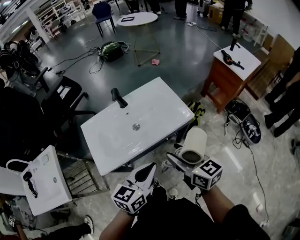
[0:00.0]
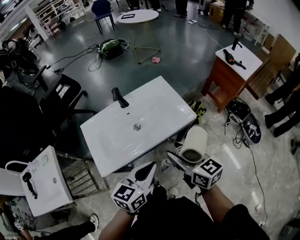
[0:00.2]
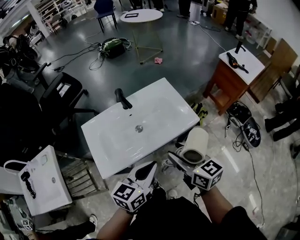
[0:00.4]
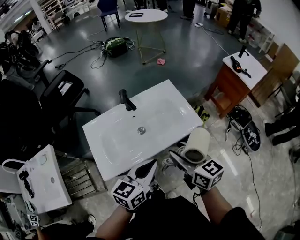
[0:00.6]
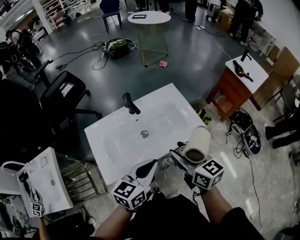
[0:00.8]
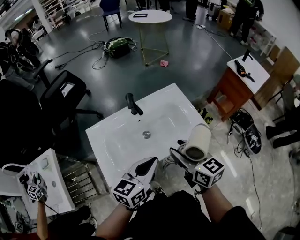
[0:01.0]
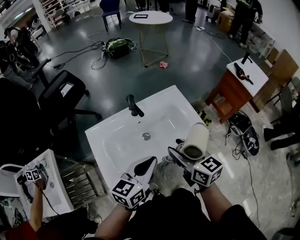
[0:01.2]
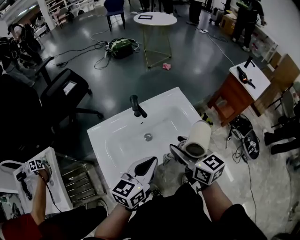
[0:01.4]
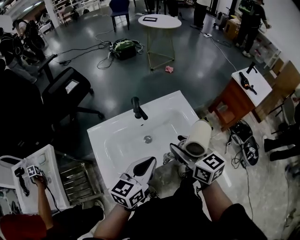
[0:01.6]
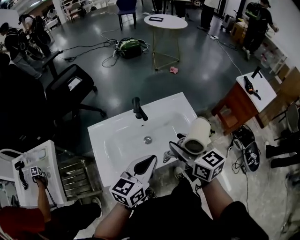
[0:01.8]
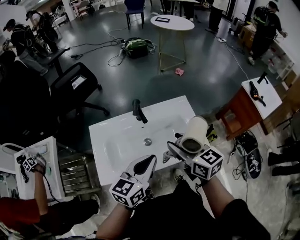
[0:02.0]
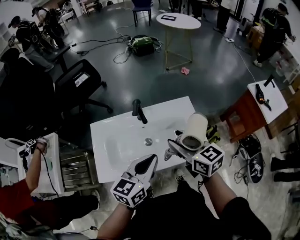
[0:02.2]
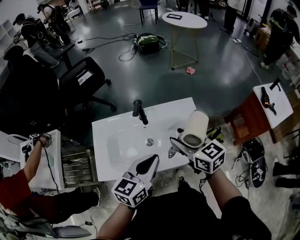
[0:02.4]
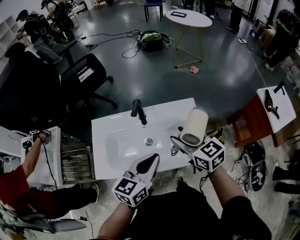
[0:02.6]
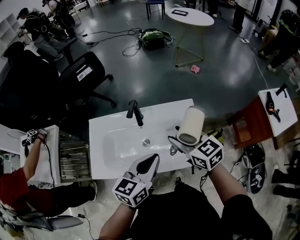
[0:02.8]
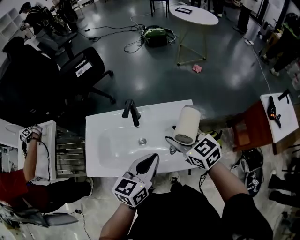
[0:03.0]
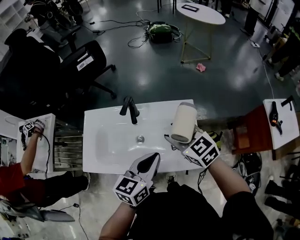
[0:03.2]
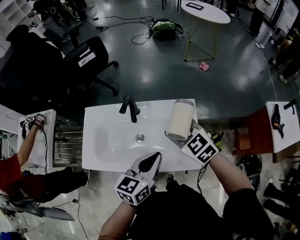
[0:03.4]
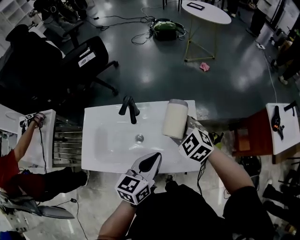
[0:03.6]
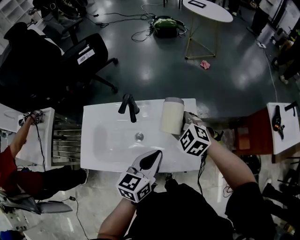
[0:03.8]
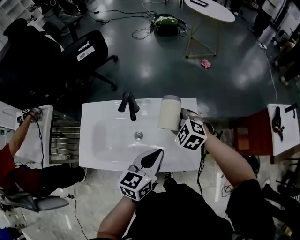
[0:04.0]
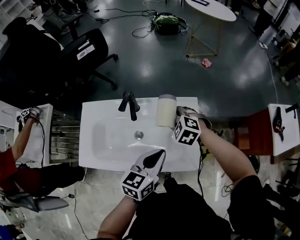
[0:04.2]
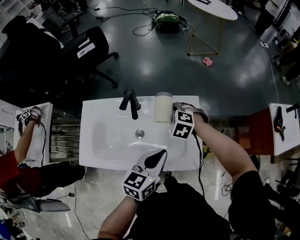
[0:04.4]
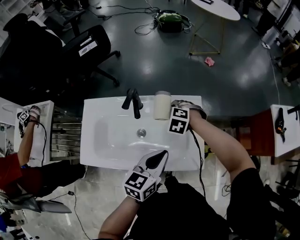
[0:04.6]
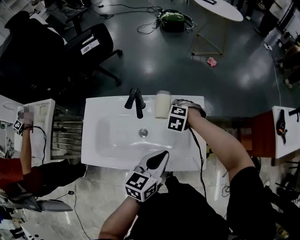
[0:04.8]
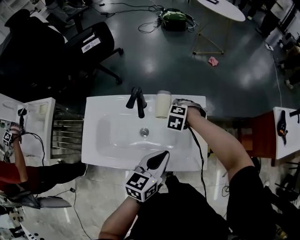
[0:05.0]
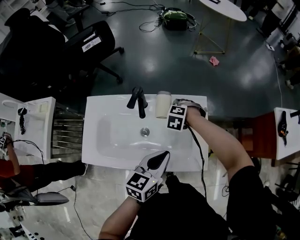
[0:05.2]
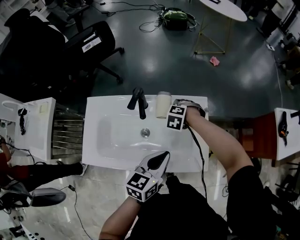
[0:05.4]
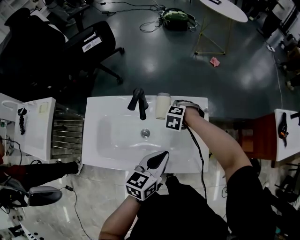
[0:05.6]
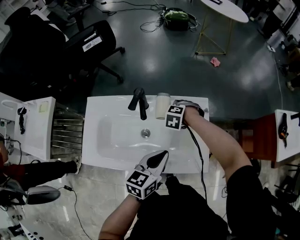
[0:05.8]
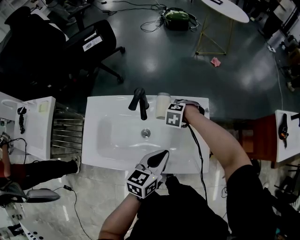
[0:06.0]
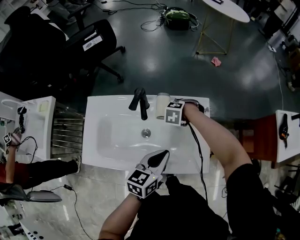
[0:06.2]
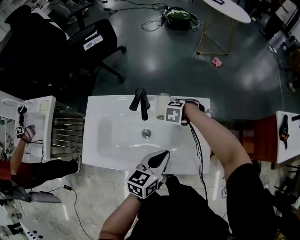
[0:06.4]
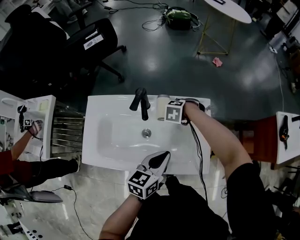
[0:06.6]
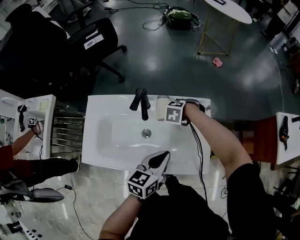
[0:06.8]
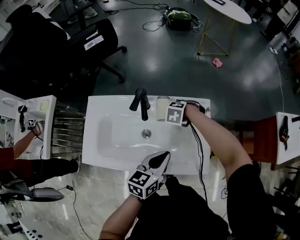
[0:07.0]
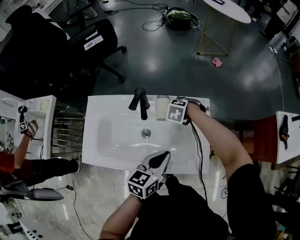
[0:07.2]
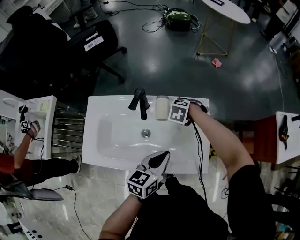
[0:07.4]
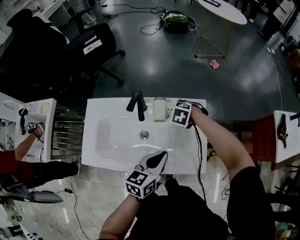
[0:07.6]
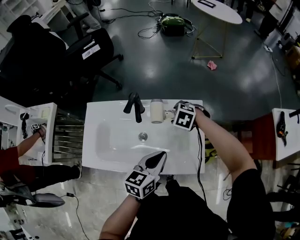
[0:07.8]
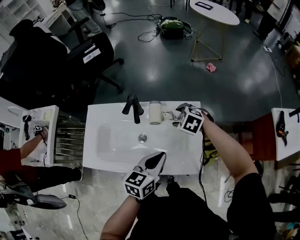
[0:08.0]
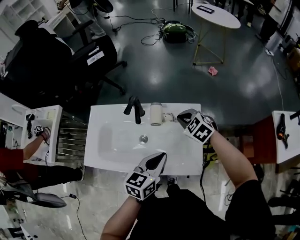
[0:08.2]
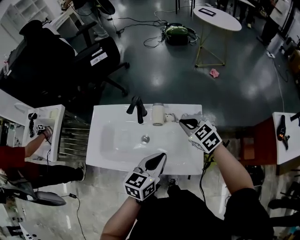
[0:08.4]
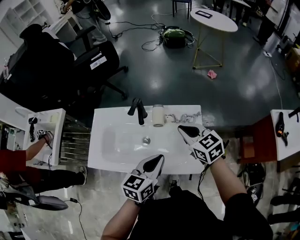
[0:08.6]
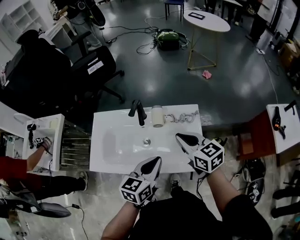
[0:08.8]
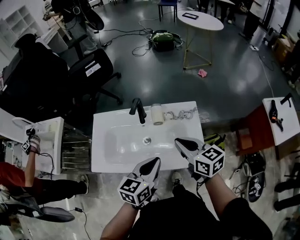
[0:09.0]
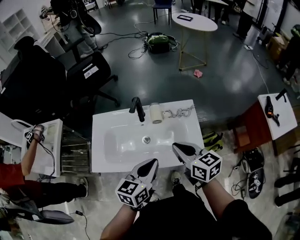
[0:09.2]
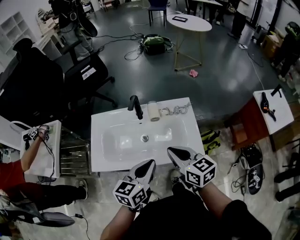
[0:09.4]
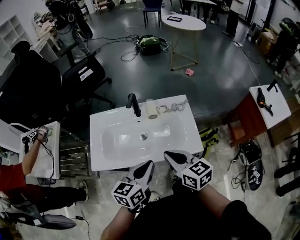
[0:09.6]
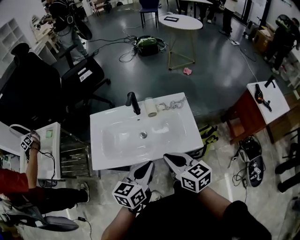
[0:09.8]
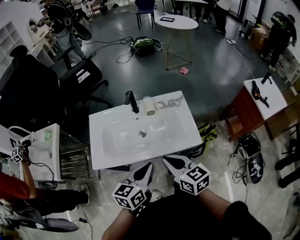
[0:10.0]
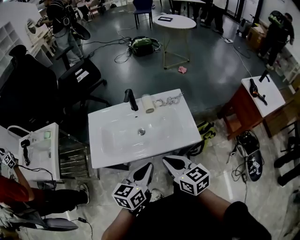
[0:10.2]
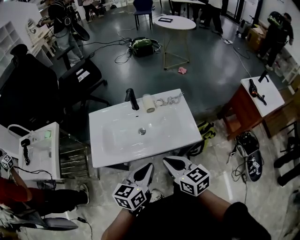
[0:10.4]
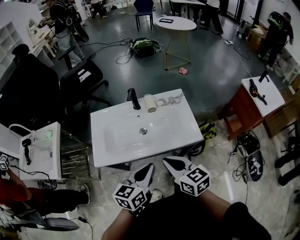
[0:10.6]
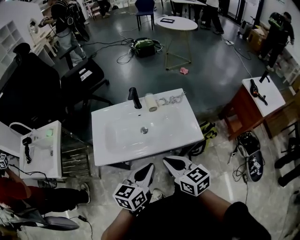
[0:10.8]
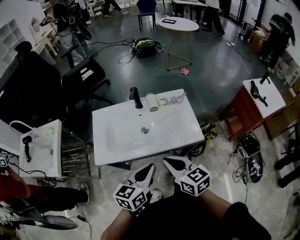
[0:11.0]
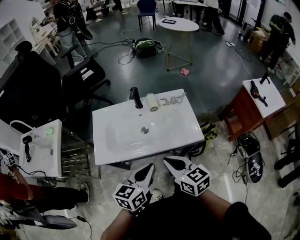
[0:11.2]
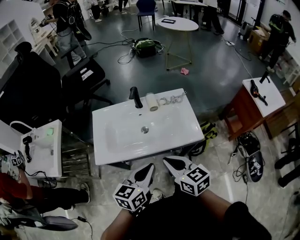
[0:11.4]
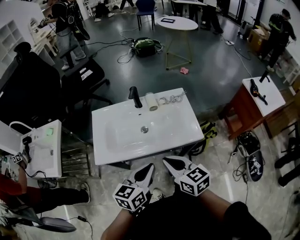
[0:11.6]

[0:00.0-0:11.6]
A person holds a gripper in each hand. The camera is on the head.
0:00.0 to 0:01.4: The grippers both shift forward and to the left by approximately 15 cm.
0:01.4 to 0:02.8: The left gripper is displaced to the right and forward by about 15 cm, and changes its angle by approximately 20 degrees. Meanwhile the right gripper heads forward and to the right, covering about 15 cm, and swivels approximately 30 degrees.
0:02.8 to 0:04.4: The left gripper is displaced downward and to the right by approximately 10 cm. The right gripper is displaced downward and forward by approximately 20 cm, and points its fingers approximately 40 degrees further downward.
0:04.4 to 0:05.8: The right gripper moves downward, approximately 10 cm.
0:05.8 to 0:07.2: The grippers make only small movements.
0:07.2 to 0:08.8: The left gripper shifts about 5 cm upward. The right gripper travels upward by approximately 25 cm, tilts its fingers some 60 degrees upward, and closes its fingers.
0:08.8 to 0:10.2: The grippers both shift backward and to the left by approximately 20 cm.
0:10.2 to 0:11.6: The grippers move only a little.

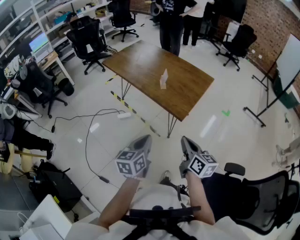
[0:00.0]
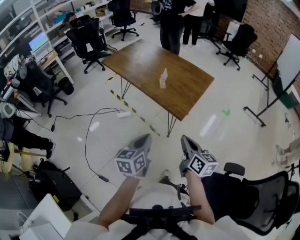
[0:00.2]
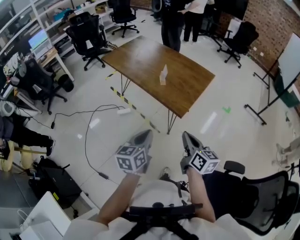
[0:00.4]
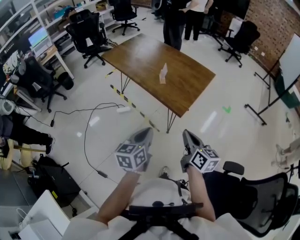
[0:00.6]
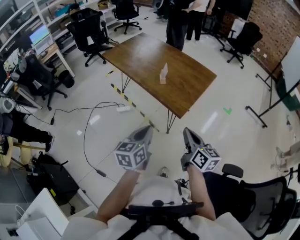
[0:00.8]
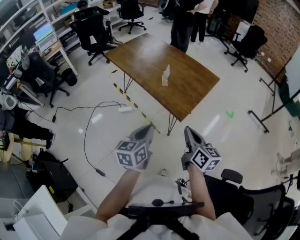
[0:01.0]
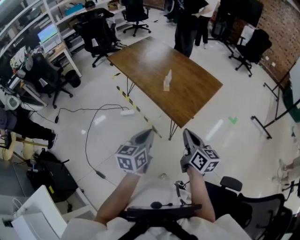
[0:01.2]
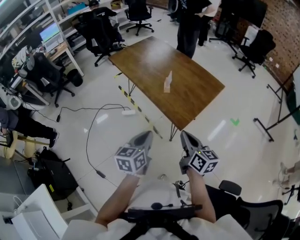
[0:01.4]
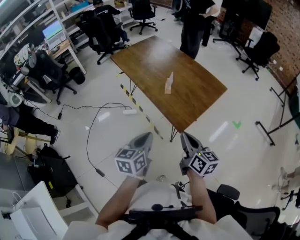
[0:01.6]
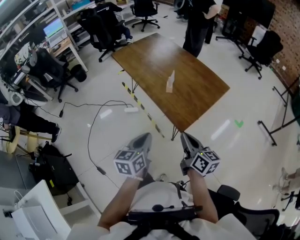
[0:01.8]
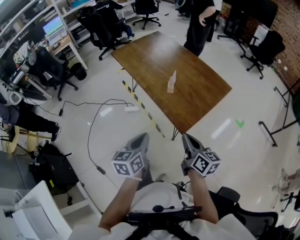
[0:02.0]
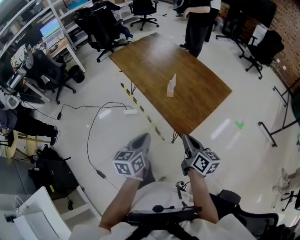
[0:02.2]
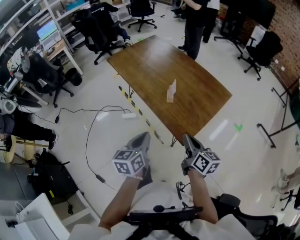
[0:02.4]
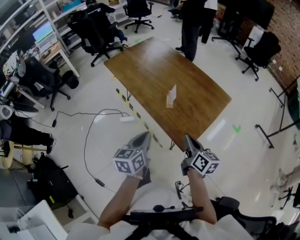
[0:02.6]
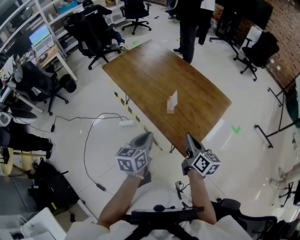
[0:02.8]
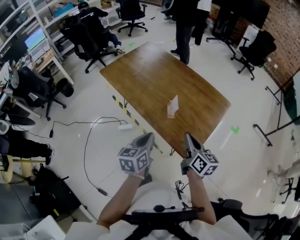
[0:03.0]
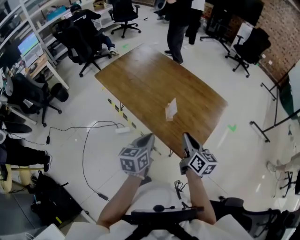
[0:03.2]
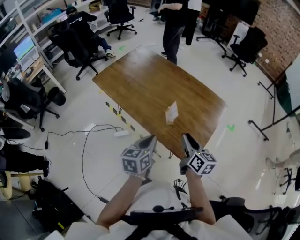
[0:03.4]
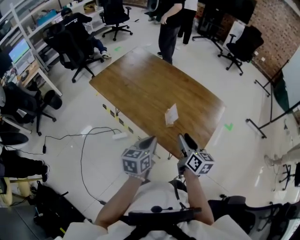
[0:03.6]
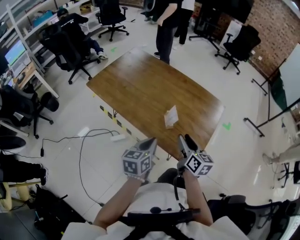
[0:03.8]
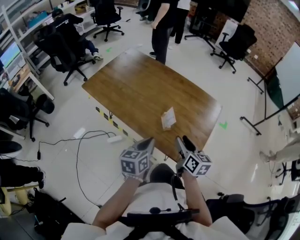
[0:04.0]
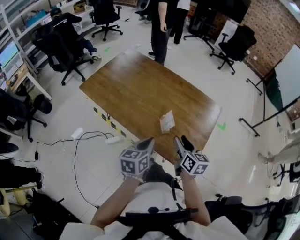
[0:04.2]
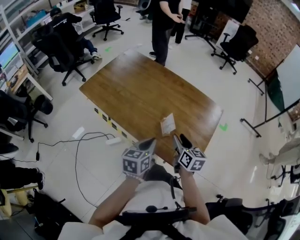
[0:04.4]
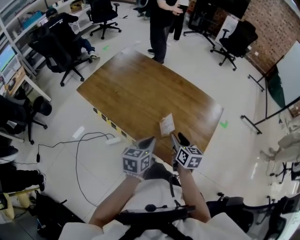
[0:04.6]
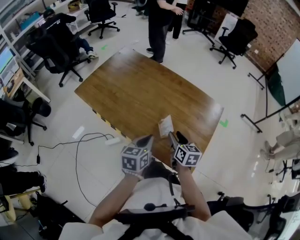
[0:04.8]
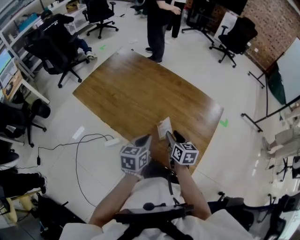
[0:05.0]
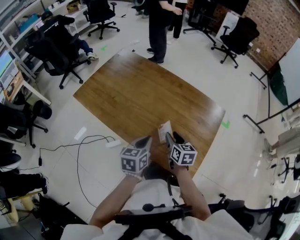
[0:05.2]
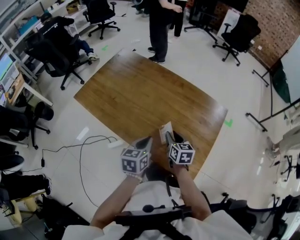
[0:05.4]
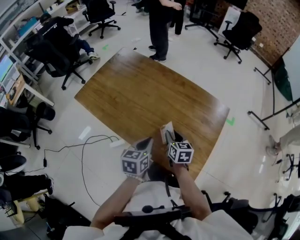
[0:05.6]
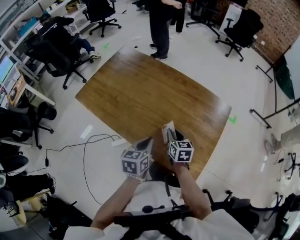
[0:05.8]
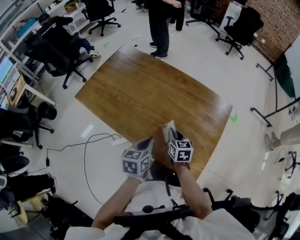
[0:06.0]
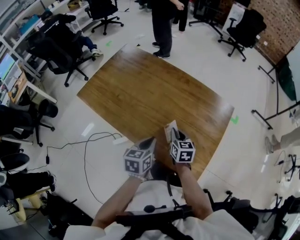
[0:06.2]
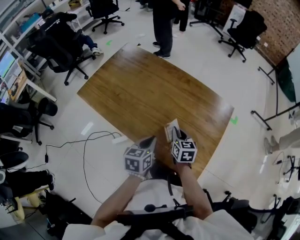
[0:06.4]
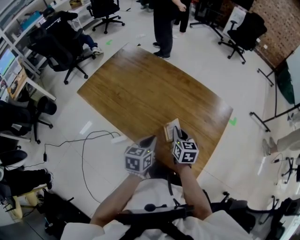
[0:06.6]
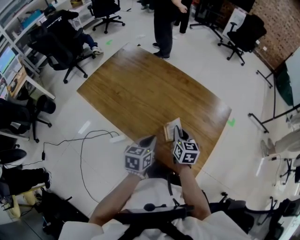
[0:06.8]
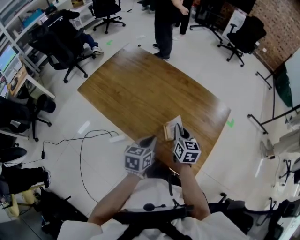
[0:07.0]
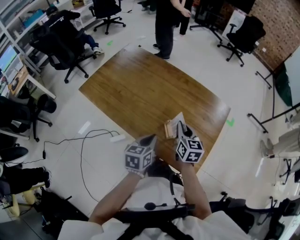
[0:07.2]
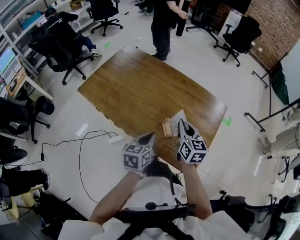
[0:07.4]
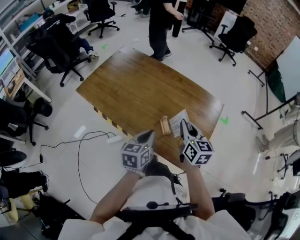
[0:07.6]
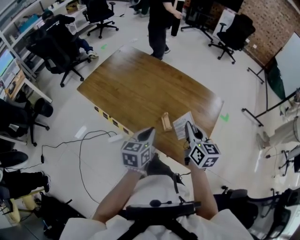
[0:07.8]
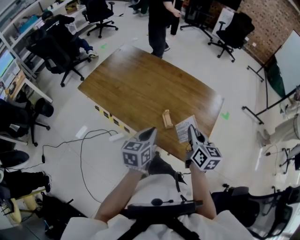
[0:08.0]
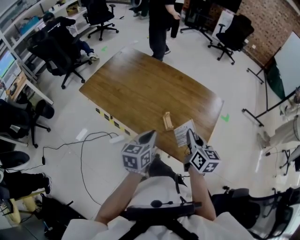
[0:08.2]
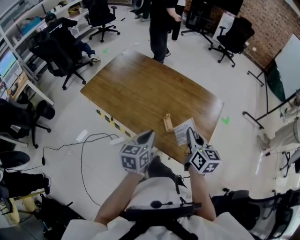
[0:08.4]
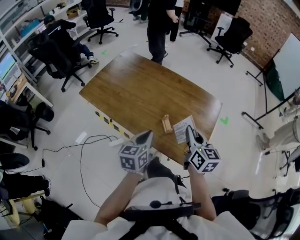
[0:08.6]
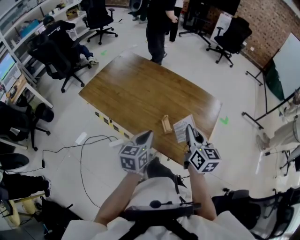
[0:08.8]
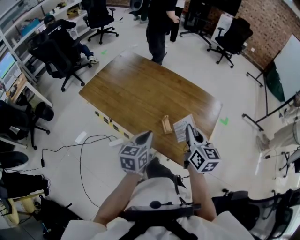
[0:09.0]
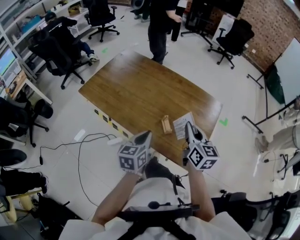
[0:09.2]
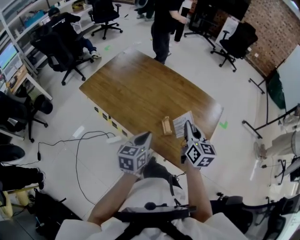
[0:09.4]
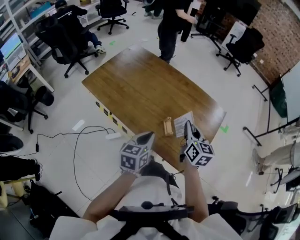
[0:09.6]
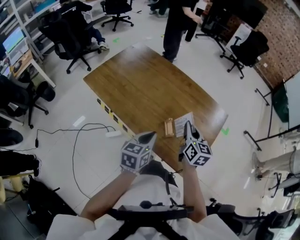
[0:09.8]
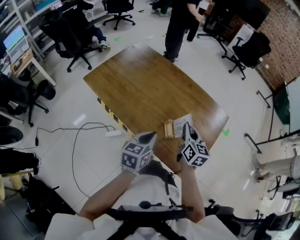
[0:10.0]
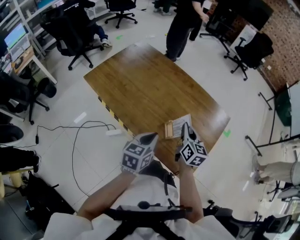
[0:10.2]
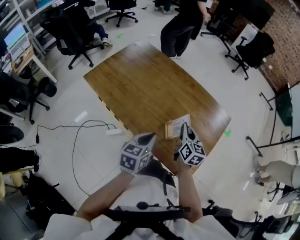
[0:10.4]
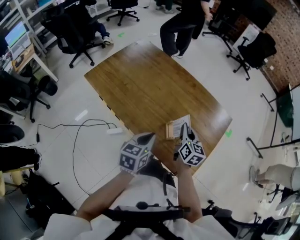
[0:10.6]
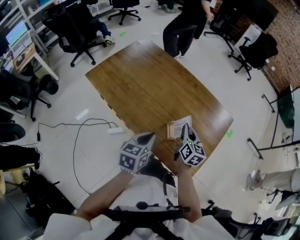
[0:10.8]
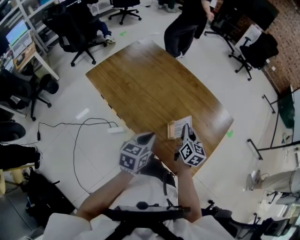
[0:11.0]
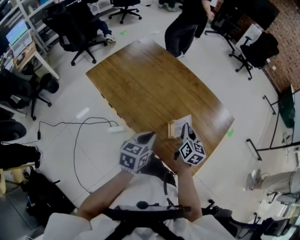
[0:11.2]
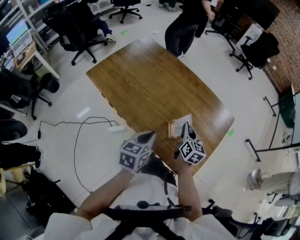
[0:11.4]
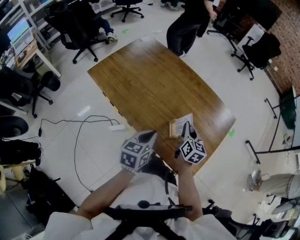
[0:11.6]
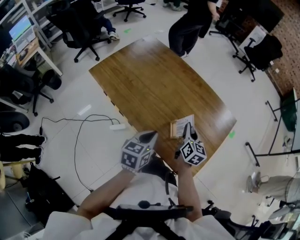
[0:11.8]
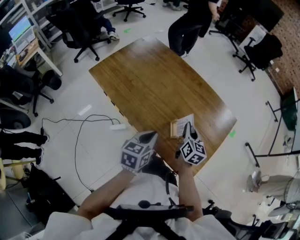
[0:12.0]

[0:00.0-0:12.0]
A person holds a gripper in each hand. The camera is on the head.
0:00.0 to 0:01.6: The left gripper is displaced forward and to the right by approximately 10 cm. Meanwhile the right gripper heads forward, covering about 10 cm.
0:01.6 to 0:03.0: The grippers both shift forward by some 20 cm.
0:03.0 to 0:04.4: The left gripper travels forward by about 10 cm; the right gripper is displaced forward and downward by approximately 10 cm, and opens.
0:04.4 to 0:06.0: The left gripper moves forward, roughly 5 cm, while the right gripper goes roughly 10 cm forward and downward, and closes up.
0:06.0 to 0:07.6: The right gripper moves upward, approximately 15 cm; the left gripper moves approximately 5 cm.
0:07.6 to 0:09.0: The right gripper ends up about 5 cm from where it was.
0:09.0 to 0:10.4: The right gripper shifts approximately 15 cm downward and forward.
0:10.4 to 0:12.0: The grippers move only a little.
